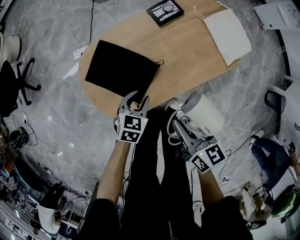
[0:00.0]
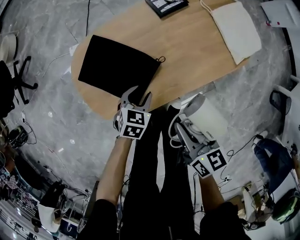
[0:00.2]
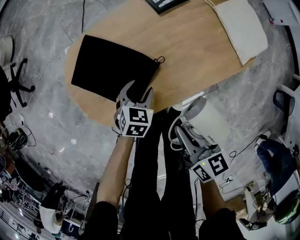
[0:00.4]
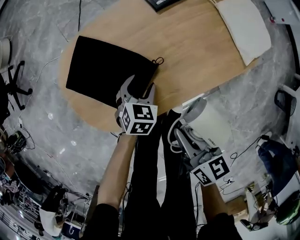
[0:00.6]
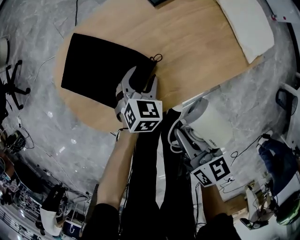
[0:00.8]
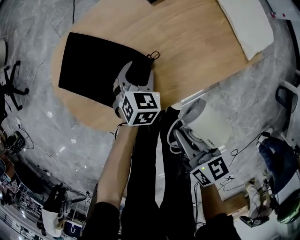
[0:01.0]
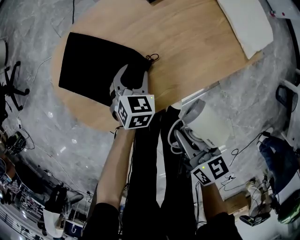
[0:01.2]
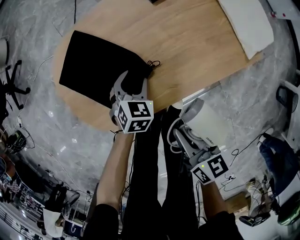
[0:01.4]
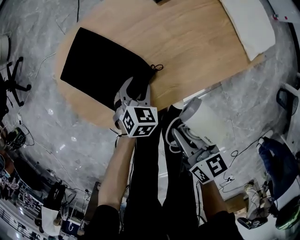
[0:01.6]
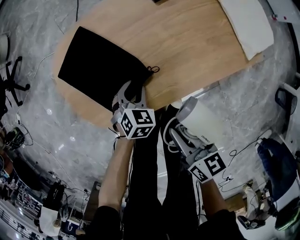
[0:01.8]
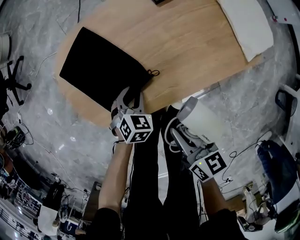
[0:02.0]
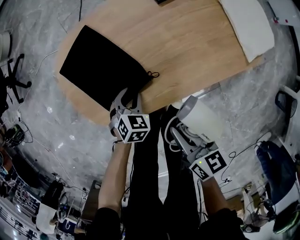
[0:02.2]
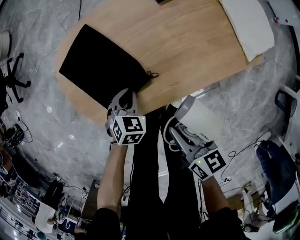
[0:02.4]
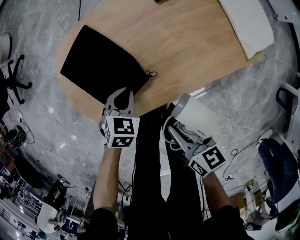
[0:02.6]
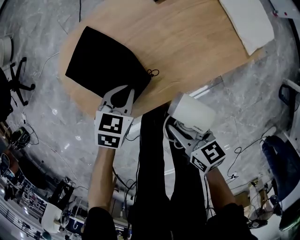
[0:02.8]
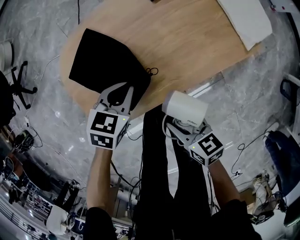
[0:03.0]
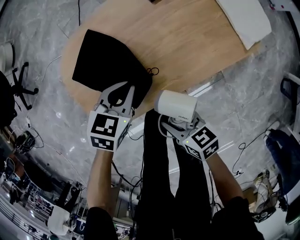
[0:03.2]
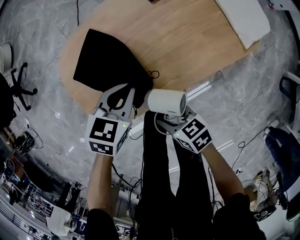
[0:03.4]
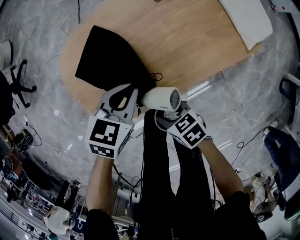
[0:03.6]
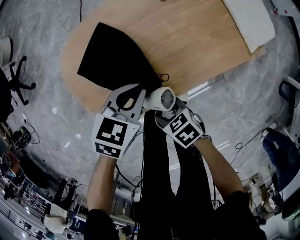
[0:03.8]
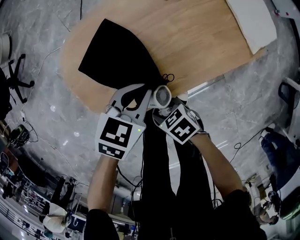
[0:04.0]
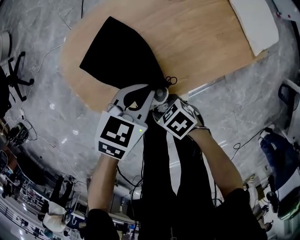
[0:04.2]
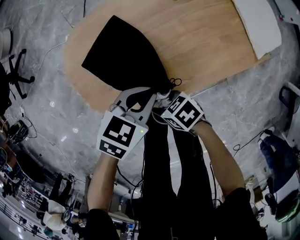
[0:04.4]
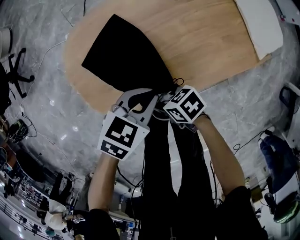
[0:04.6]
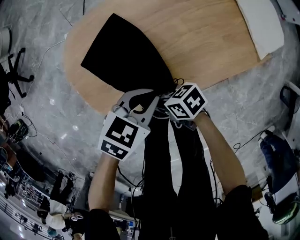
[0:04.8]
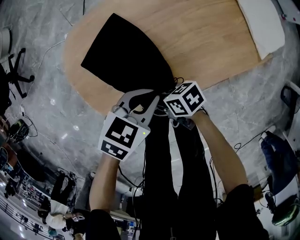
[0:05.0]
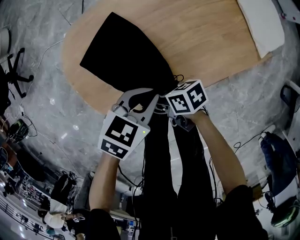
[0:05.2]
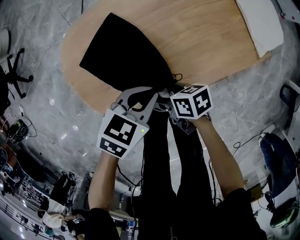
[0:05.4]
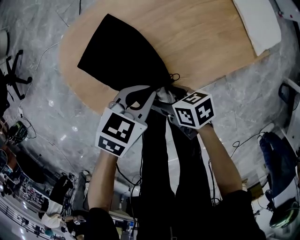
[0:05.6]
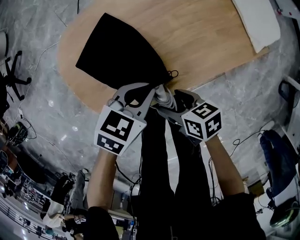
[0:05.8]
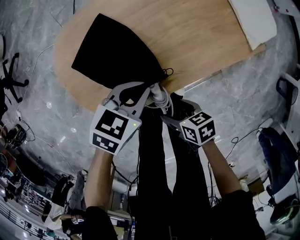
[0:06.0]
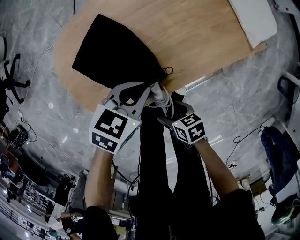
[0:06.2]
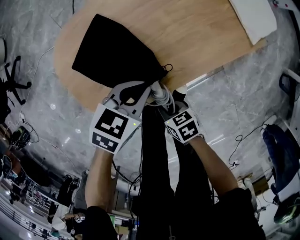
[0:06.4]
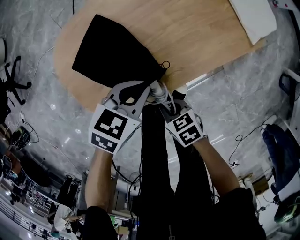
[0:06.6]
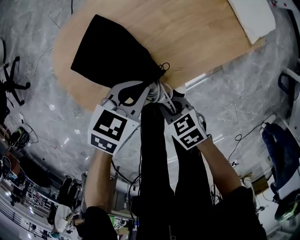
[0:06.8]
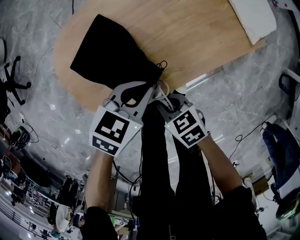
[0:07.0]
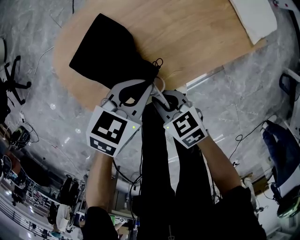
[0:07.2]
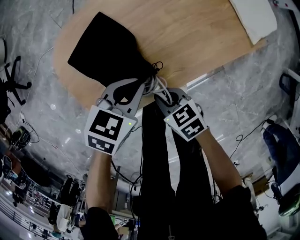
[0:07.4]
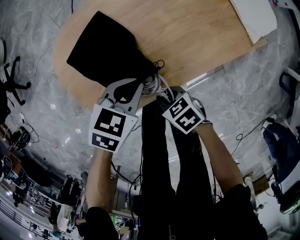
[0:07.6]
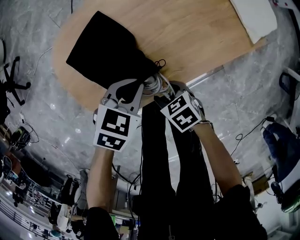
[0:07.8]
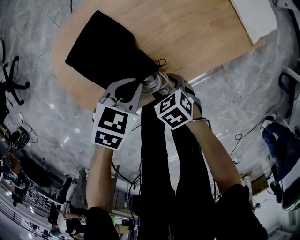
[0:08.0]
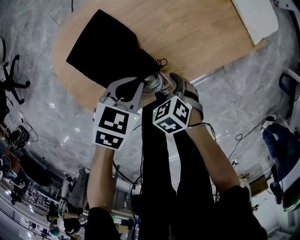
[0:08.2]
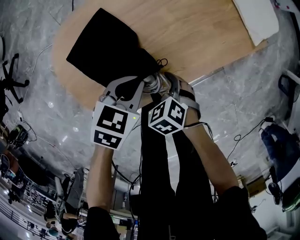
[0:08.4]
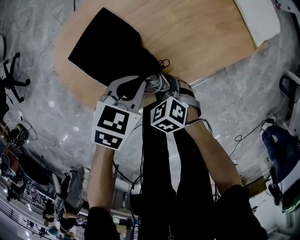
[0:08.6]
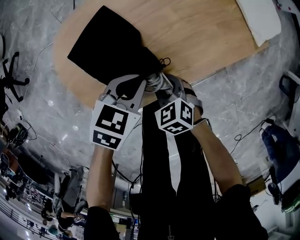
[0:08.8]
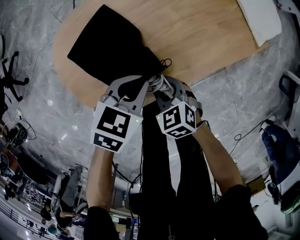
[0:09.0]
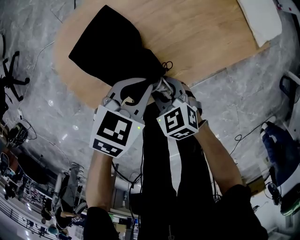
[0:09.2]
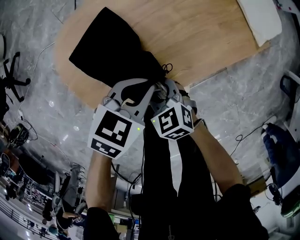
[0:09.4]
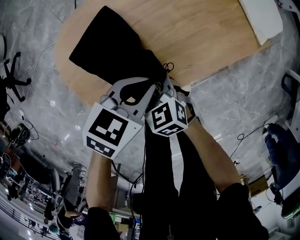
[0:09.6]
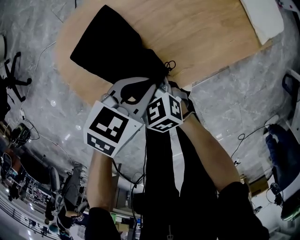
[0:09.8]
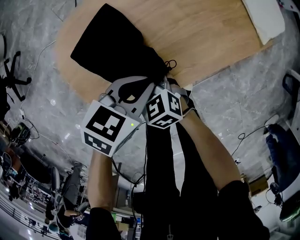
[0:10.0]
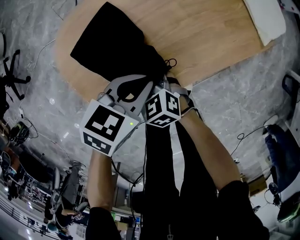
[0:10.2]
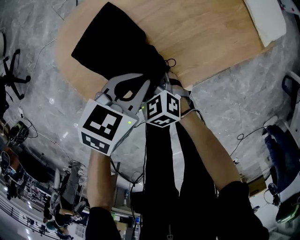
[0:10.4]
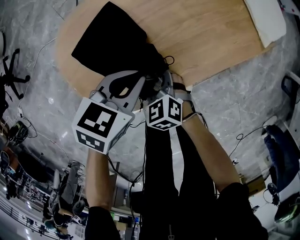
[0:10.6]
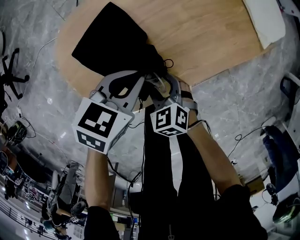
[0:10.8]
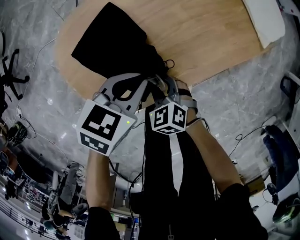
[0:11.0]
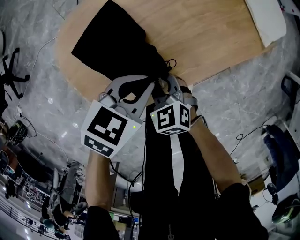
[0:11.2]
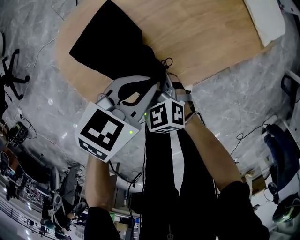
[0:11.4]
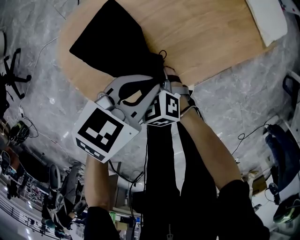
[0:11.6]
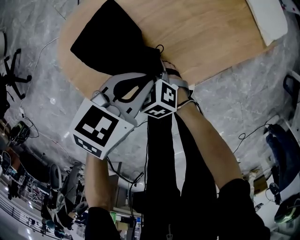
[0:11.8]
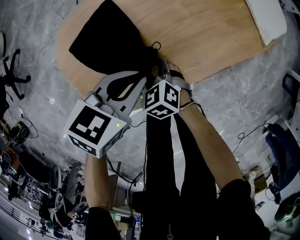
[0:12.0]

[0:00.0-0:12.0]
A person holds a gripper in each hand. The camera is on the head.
0:00.0 to 0:01.6: Both grippers travel together downward, roughly 15 cm.
0:01.6 to 0:03.0: The right gripper changes place by some 5 cm, while the left gripper shifts roughly 10 cm upward, changes its angle by some 20 degrees, and closes.
0:03.0 to 0:04.4: The right gripper moves approximately 15 cm, and swivels approximately 40 degrees.
0:04.4 to 0:06.0: The right gripper shifts by about 10 cm, changes its angle by about 30 degrees, and opens its fingers.
0:06.0 to 0:07.6: The right gripper changes its angle by about 20 degrees, and closes.
0:07.6 to 0:09.0: The right gripper shifts by some 5 cm, swivels some 30 degrees, and opens, then closes again.
0:09.0 to 0:10.4: The right gripper is displaced to the left by about 10 cm.
0:10.4 to 0:12.0: The grippers stay close to where they were, moving slightly.

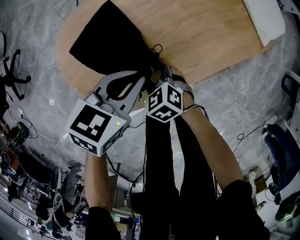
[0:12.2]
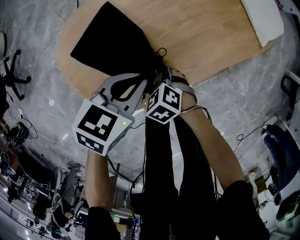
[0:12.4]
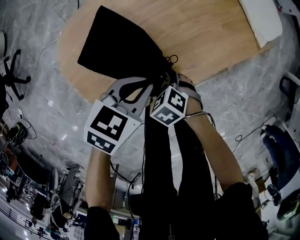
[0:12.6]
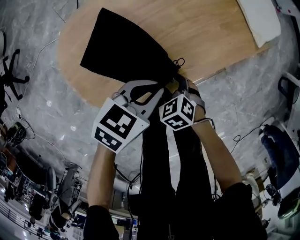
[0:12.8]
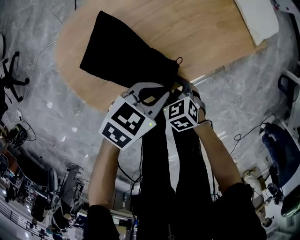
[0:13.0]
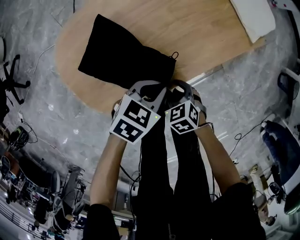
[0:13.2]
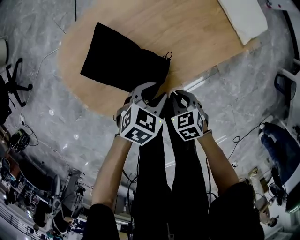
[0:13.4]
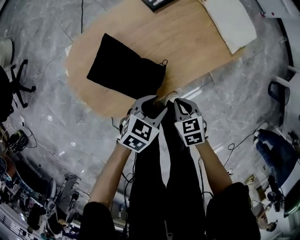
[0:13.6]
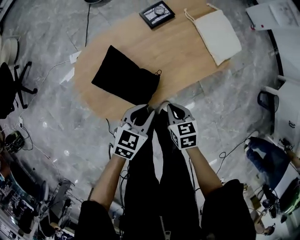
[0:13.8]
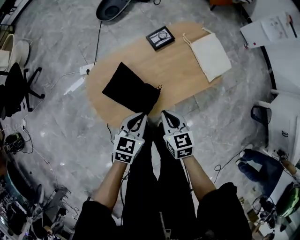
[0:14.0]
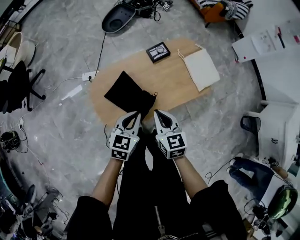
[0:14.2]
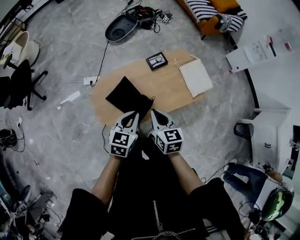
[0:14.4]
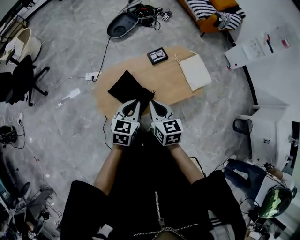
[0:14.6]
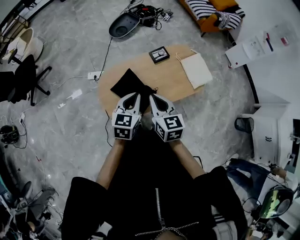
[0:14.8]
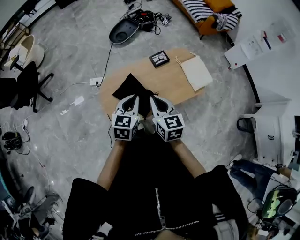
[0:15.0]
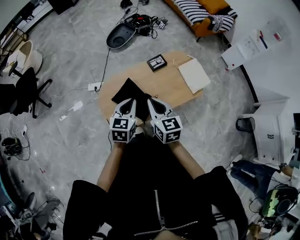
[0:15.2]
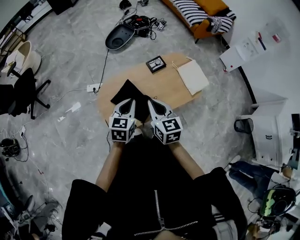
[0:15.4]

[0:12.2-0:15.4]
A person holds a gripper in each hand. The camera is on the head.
0:12.2 to 0:13.8: The right gripper is displaced upward by approximately 15 cm, changes its angle by about 30 degrees, and closes its fingers, while the left gripper moves some 15 cm.
0:13.8 to 0:15.4: The right gripper goes about 35 cm upward, and turns by roughly 30 degrees, while the left gripper heads upward and to the left, covering approximately 30 cm, and changes its angle by roughly 30 degrees.

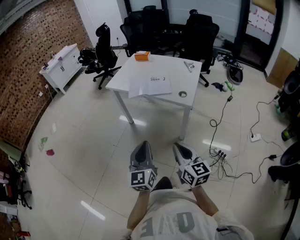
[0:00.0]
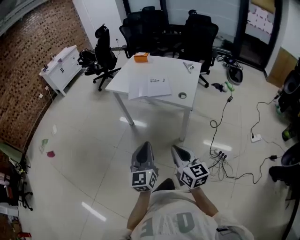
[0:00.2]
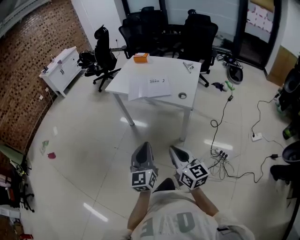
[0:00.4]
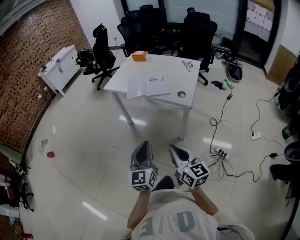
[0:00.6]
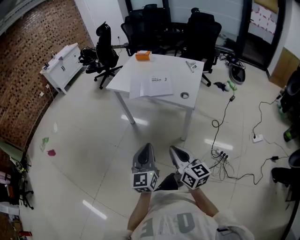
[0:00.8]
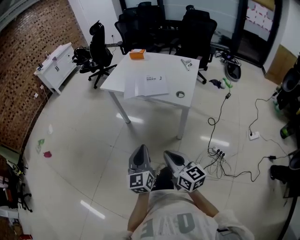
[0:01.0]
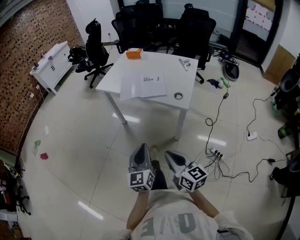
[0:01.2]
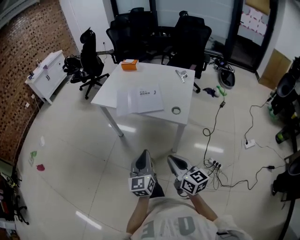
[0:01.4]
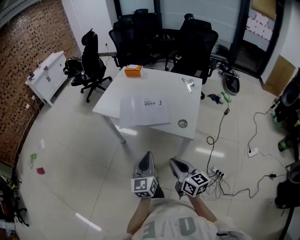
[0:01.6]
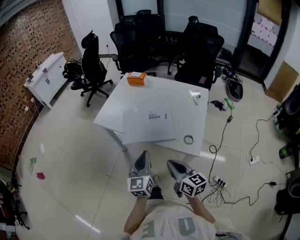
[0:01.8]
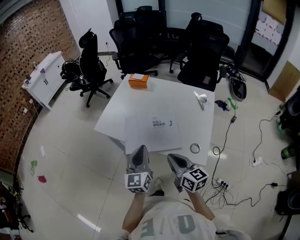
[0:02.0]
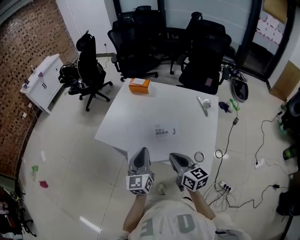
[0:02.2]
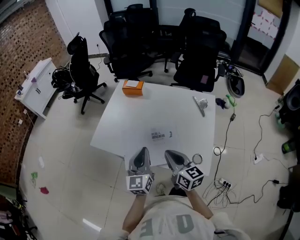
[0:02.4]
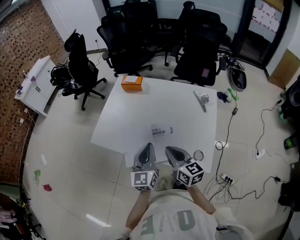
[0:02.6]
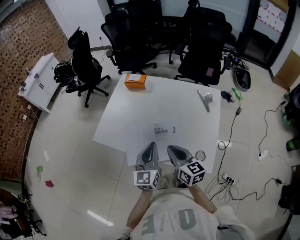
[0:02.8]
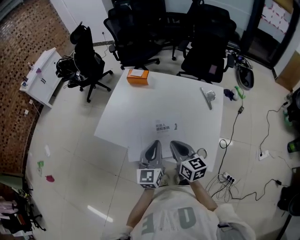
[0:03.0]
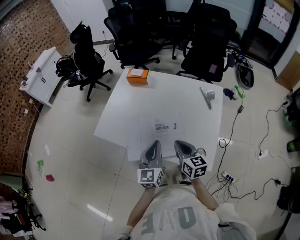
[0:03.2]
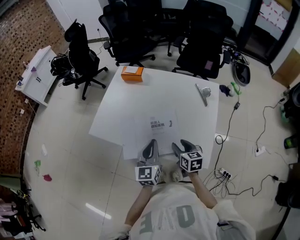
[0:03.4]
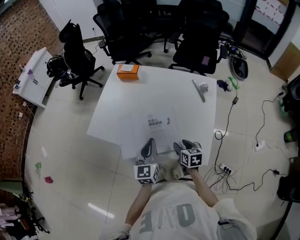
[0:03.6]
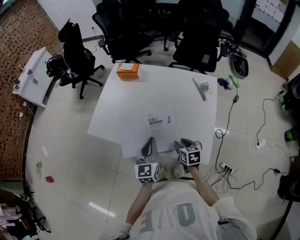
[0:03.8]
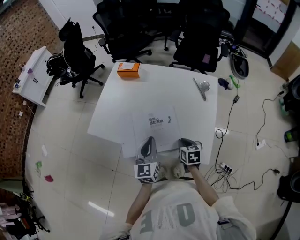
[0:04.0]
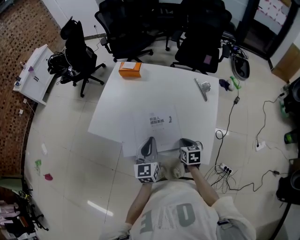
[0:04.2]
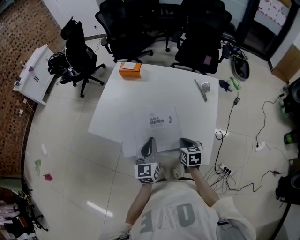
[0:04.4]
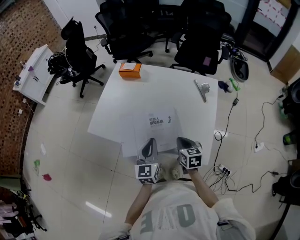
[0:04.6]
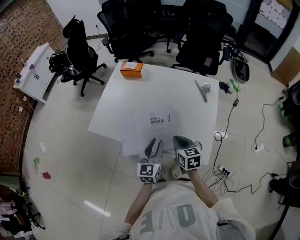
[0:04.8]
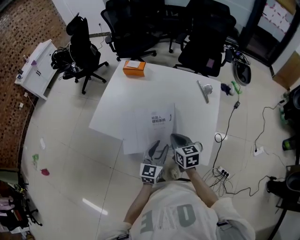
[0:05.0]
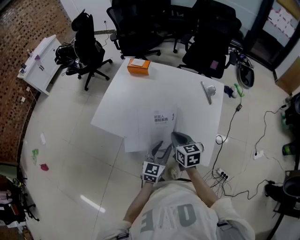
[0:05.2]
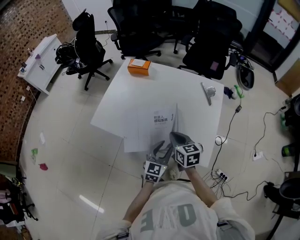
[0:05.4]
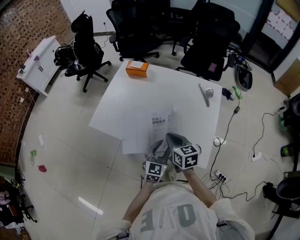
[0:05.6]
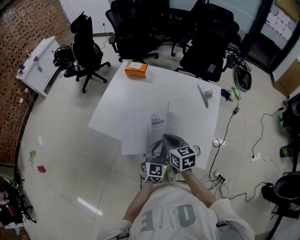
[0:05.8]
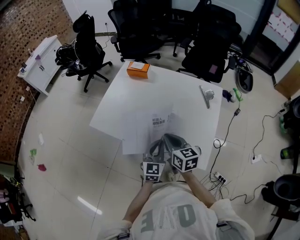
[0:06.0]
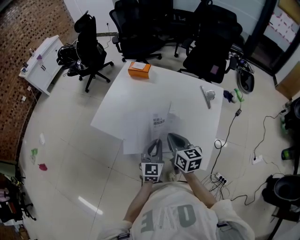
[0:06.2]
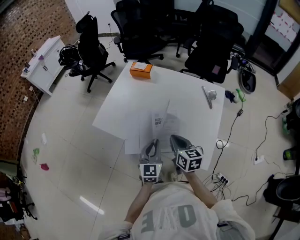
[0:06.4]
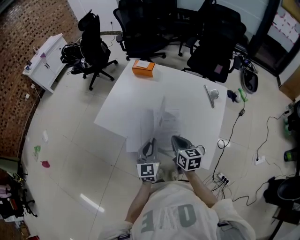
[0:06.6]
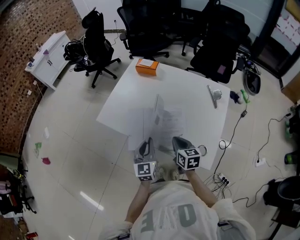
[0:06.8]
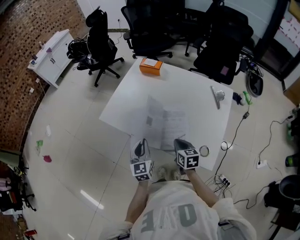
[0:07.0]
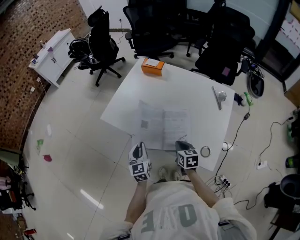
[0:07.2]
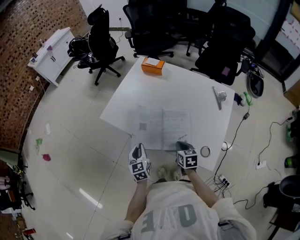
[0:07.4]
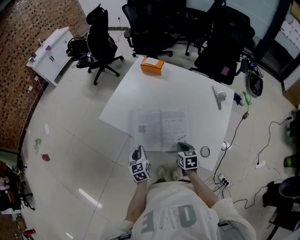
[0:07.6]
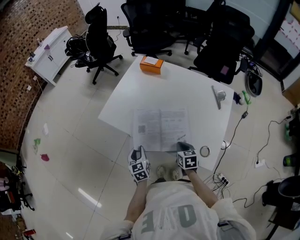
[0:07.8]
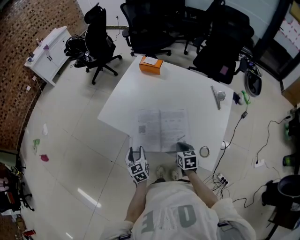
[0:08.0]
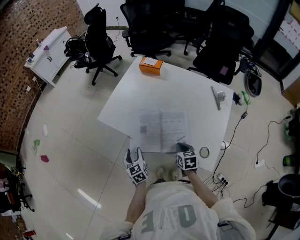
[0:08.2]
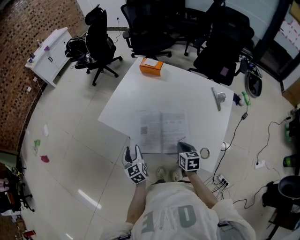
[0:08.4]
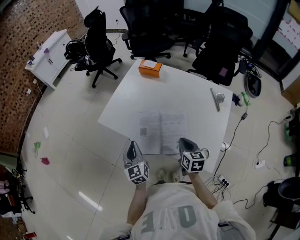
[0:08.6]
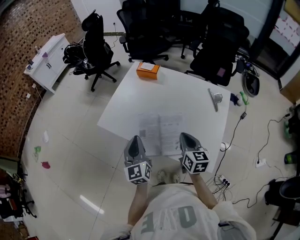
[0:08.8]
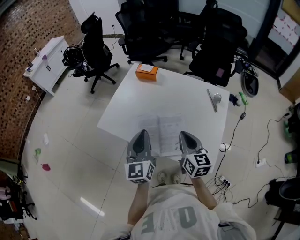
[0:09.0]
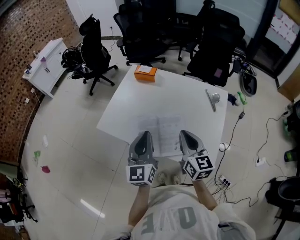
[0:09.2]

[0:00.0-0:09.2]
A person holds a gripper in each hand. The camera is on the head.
0:00.0 to 0:01.6: The two grippers go roughly 20 cm forward.
0:01.6 to 0:03.0: The two grippers go some 30 cm forward.
0:03.0 to 0:04.6: The right gripper is displaced downward and to the right by approximately 10 cm, turns by roughly 30 degrees, and opens and closes again.
0:04.6 to 0:06.2: The left gripper opens and closes again. Meanwhile the right gripper is displaced upward and to the left by roughly 10 cm.
0:06.2 to 0:07.6: The left gripper goes approximately 20 cm to the left and downward, and changes its angle by about 30 degrees. The right gripper travels downward by approximately 15 cm, and rotates approximately 30 degrees.
0:07.6 to 0:09.2: Both grippers move upward, roughly 25 cm. The left gripper turns by about 30 degrees, and opens, then closes again; the right gripper tips its fingers upward by approximately 40 degrees.
